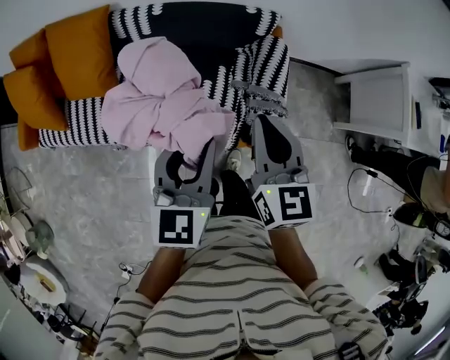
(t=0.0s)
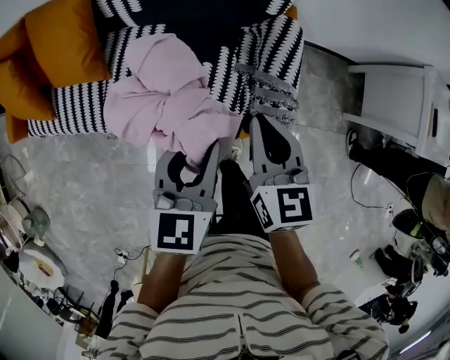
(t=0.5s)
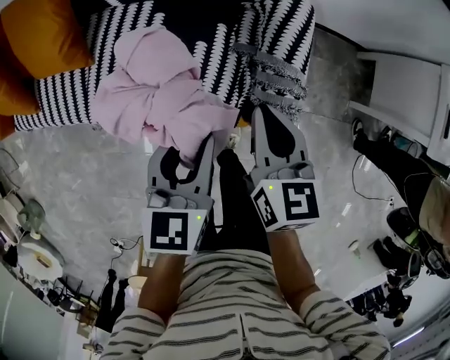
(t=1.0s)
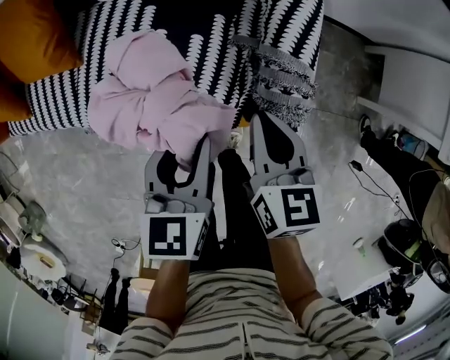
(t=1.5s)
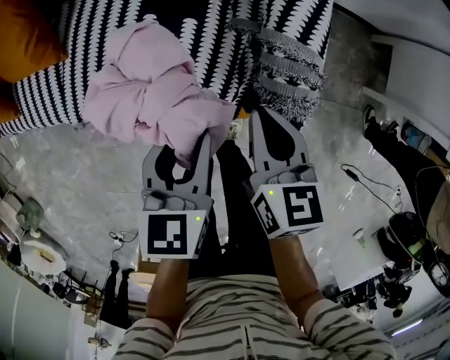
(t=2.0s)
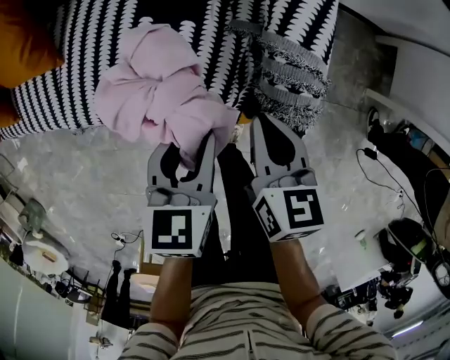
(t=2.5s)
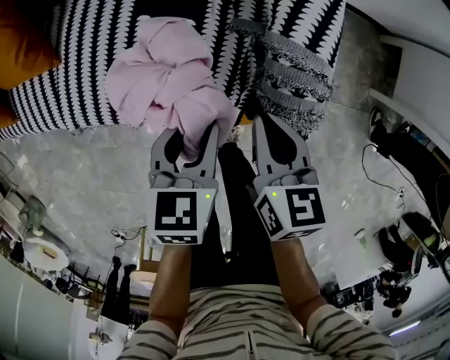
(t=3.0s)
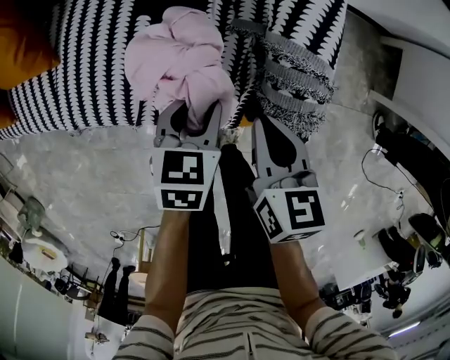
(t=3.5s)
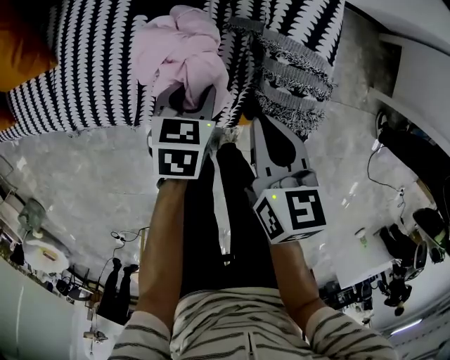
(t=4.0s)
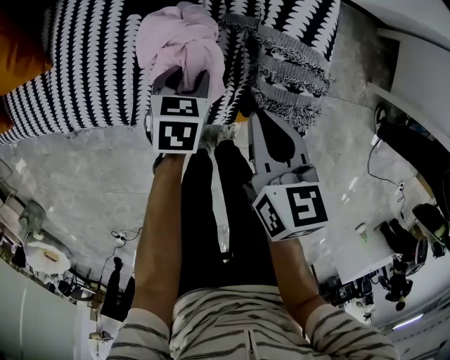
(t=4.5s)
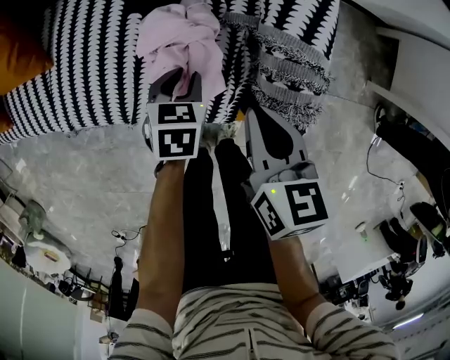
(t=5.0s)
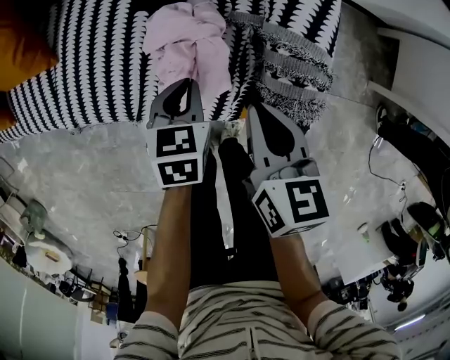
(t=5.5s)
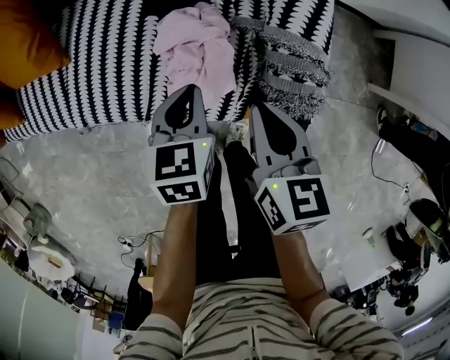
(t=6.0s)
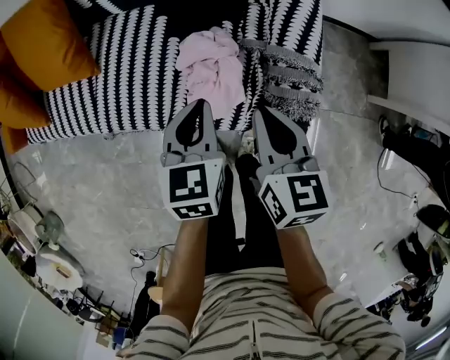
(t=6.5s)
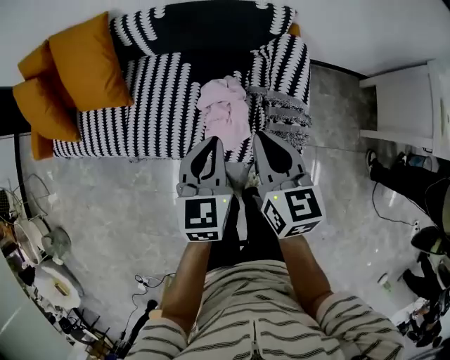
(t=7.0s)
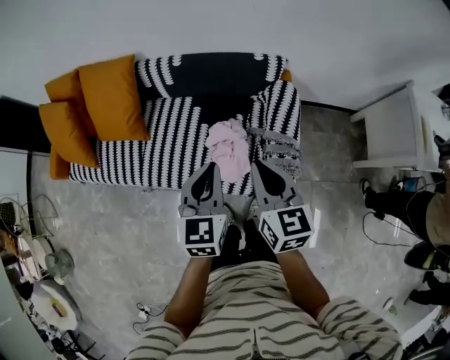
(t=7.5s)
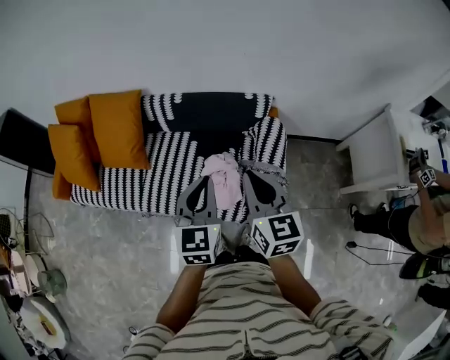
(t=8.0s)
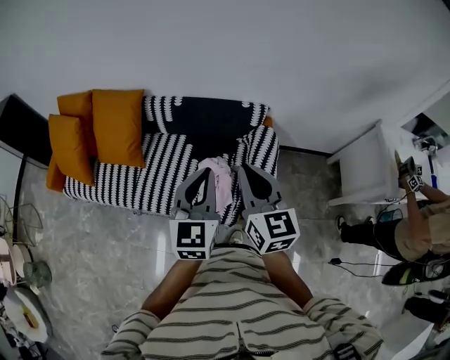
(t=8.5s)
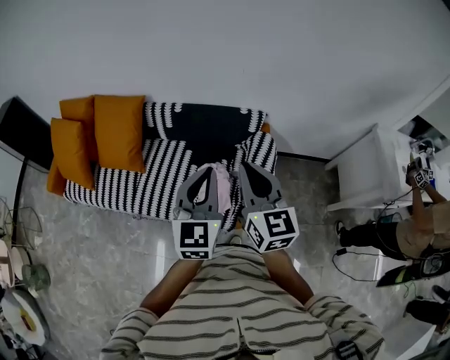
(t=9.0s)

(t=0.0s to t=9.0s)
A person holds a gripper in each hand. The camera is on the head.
t=0.0s - t=2.0s: Both grippers move downward, roughly 30 cm. The right gripper swivels some 20 degrees. Meanwhile the left gripper rotates some 20 degrees.
t=2.0s - t=4.5s: The right gripper travels downward by approximately 5 cm, while the left gripper shifts approximately 20 cm downward and forward, and changes its angle by roughly 20 degrees.
t=4.5s - t=7.0s: Both grippers move upward, approximately 30 cm. The right gripper changes its angle by some 20 degrees. Meanwhile the left gripper tips its fingers upward by about 30 degrees, and closes its fingers.
t=7.0s - t=9.0s: Both grippers travel together upward, about 25 cm. The left gripper rotates roughly 20 degrees. Meanwhile the right gripper turns by about 20 degrees.

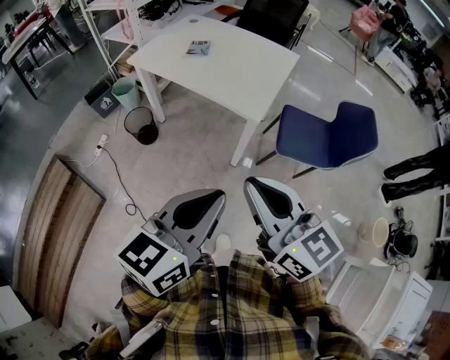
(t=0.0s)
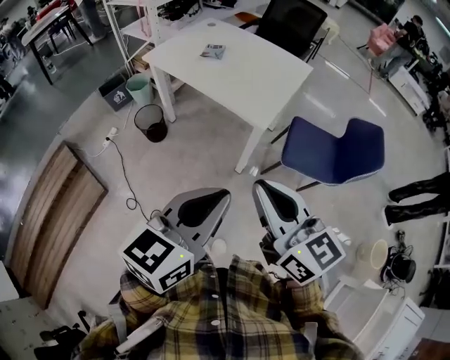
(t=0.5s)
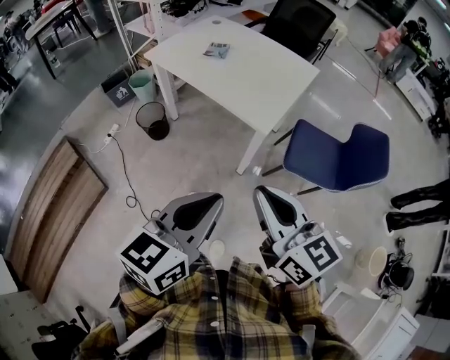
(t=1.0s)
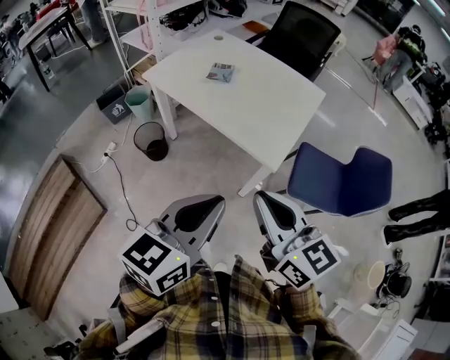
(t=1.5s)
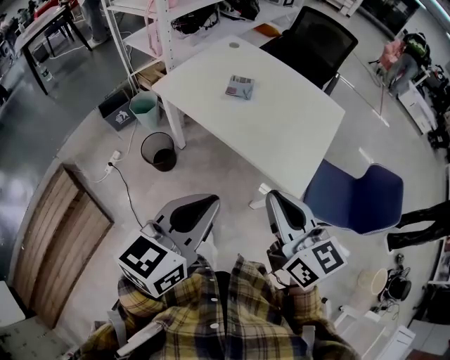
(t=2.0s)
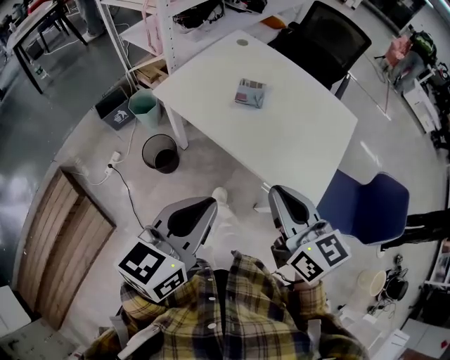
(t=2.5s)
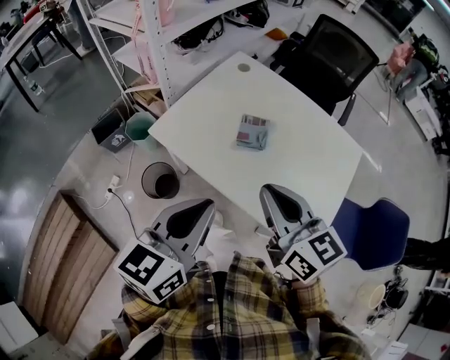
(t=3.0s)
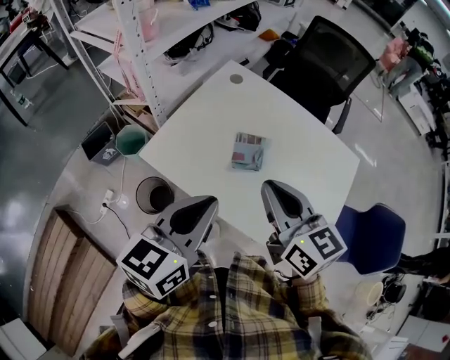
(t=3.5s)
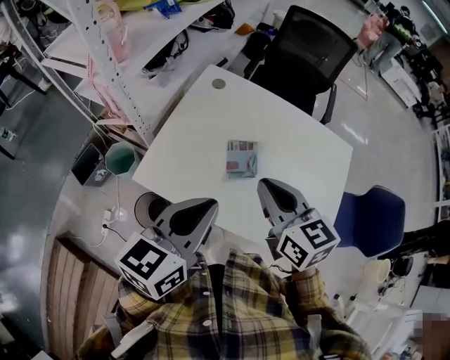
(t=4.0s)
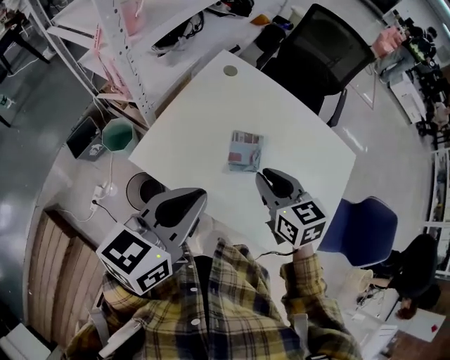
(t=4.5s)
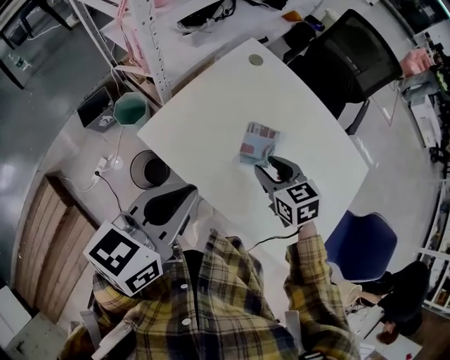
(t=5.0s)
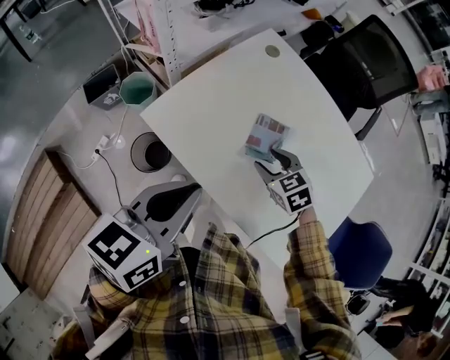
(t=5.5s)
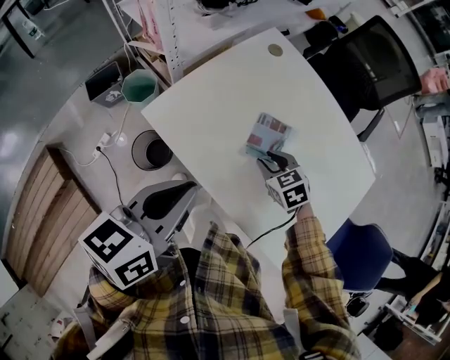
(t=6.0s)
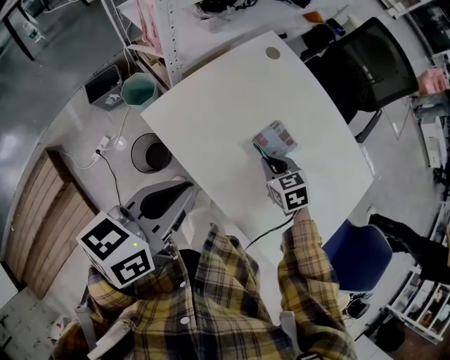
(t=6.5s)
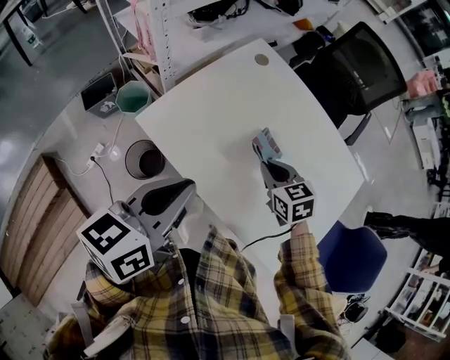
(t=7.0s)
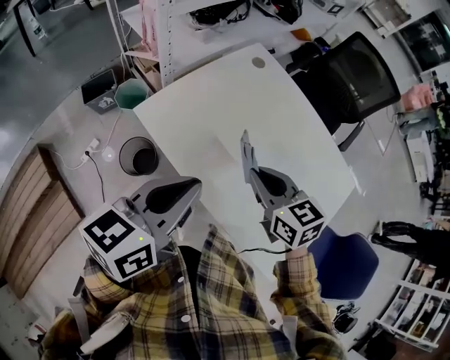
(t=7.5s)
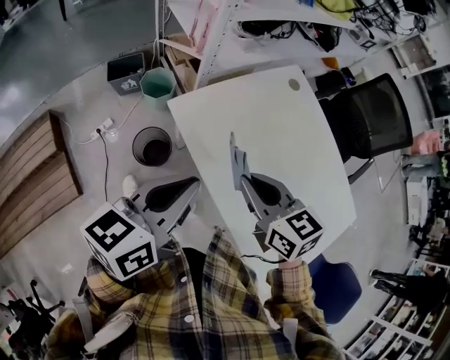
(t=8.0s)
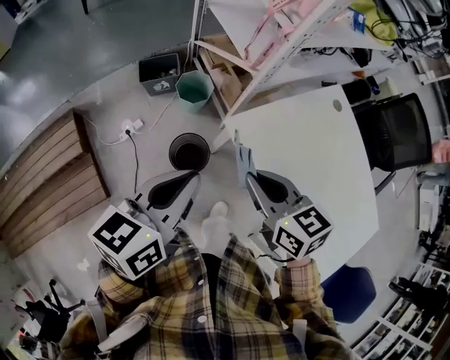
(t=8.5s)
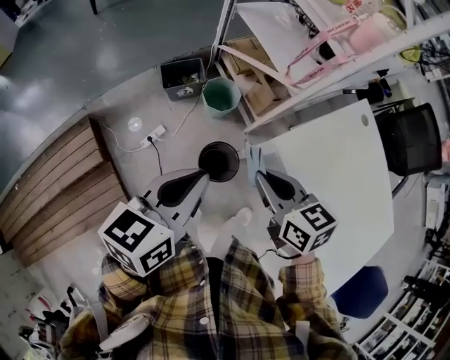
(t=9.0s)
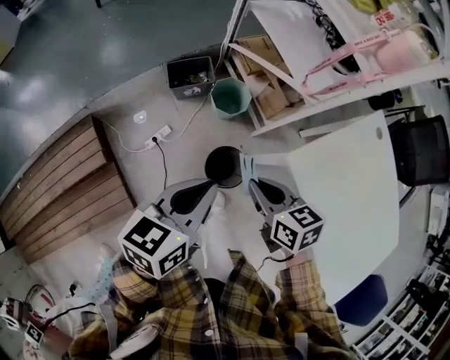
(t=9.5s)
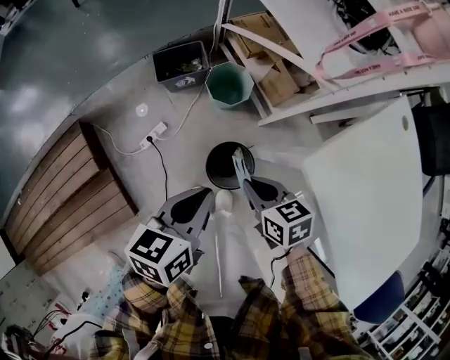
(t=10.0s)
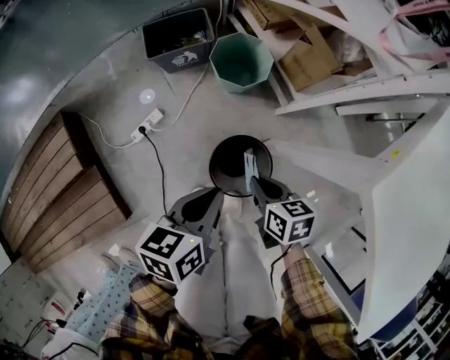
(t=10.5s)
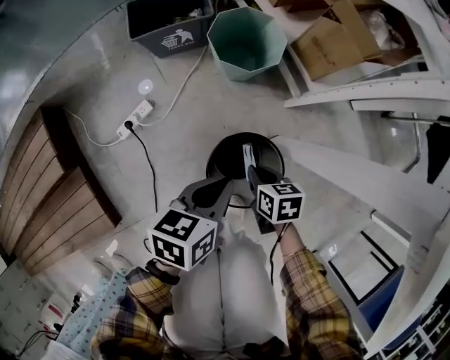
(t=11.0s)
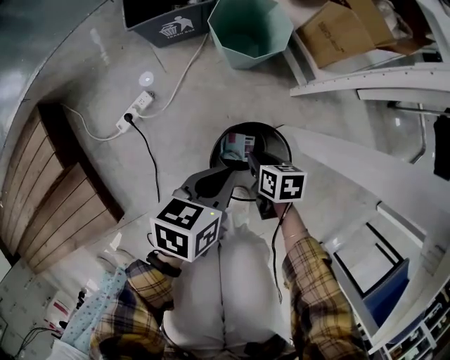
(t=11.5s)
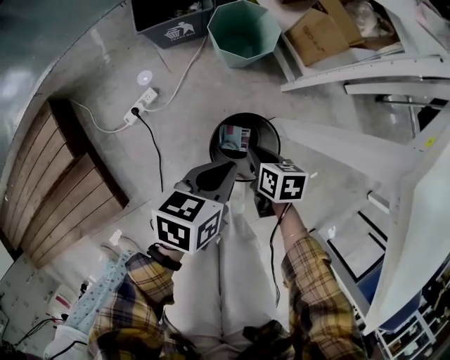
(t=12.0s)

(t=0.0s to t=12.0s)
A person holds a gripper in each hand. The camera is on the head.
t=0.0s - t=2.0s: The left gripper heads forward and to the left, covering some 30 cm, while the right gripper travels forward by about 25 cm.
t=2.0s - t=4.0s: The two grippers travel together, forward, some 40 cm.
t=4.0s - t=6.0s: The right gripper moves downward, approximately 25 cm, angles its fingers downward, by some 40 degrees, and opens up; the left gripper goes roughly 5 cm downward, and changes its angle by about 20 degrees.
t=6.0s - t=8.0s: The right gripper heads upward and to the left, covering roughly 25 cm, changes its angle by roughly 30 degrees, and closes its fingers. Meanwhile the left gripper moves about 5 cm.
t=8.0s - t=10.0s: The grippers both shift to the left, downward and forward by about 40 cm. The right gripper swivels about 20 degrees.
t=10.0s - t=12.0s: The grippers both shift downward by roughly 35 cm. The right gripper turns by roughly 20 degrees.

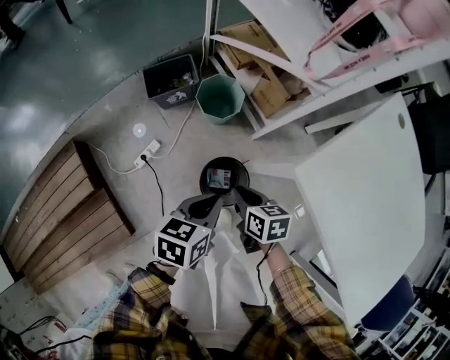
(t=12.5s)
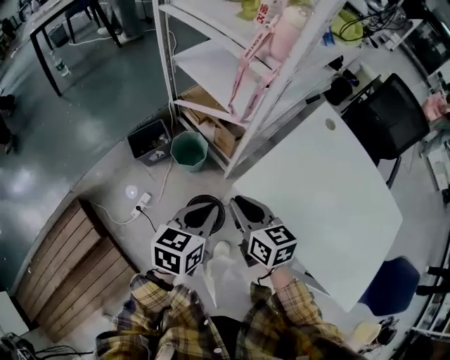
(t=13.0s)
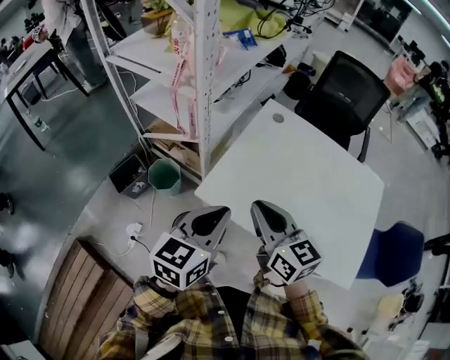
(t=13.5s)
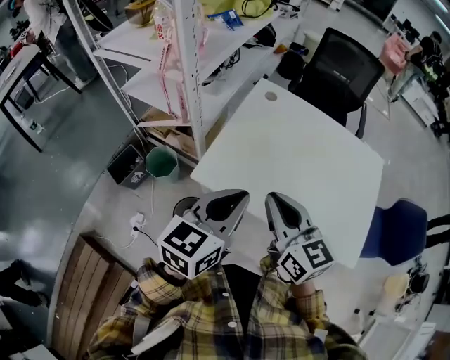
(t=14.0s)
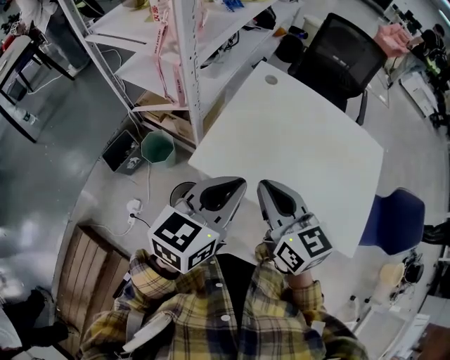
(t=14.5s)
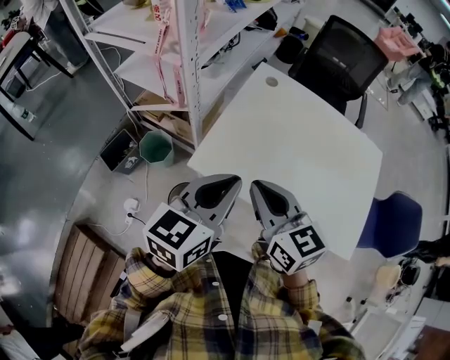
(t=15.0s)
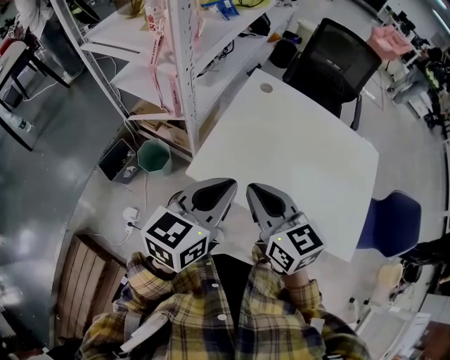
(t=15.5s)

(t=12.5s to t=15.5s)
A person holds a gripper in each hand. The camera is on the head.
t=12.5s - t=14.0s: The two grippers go roughly 40 cm upward. The right gripper points its fingers approximately 40 degrees further upward; the left gripper changes its angle by roughly 50 degrees.
t=14.0s - t=15.5s: The right gripper moves some 5 cm.

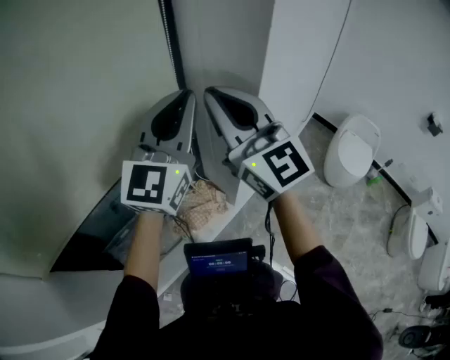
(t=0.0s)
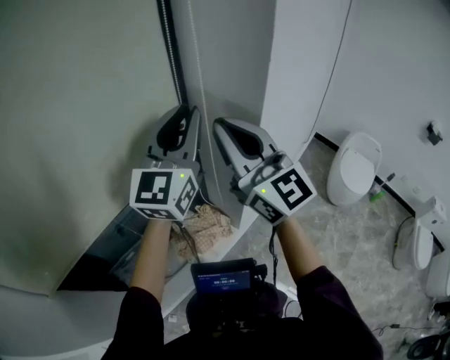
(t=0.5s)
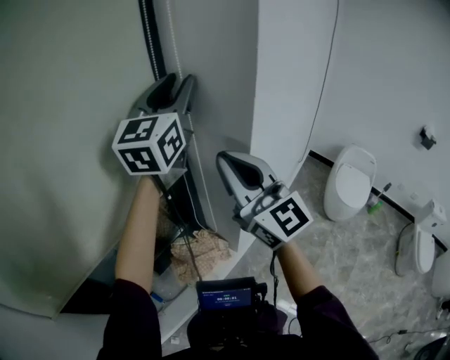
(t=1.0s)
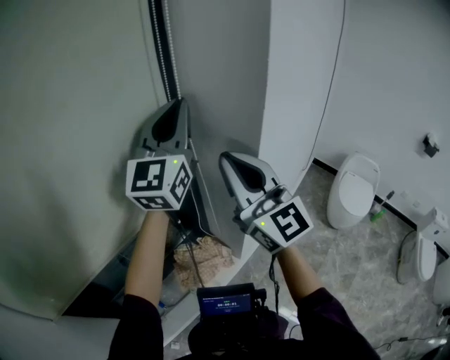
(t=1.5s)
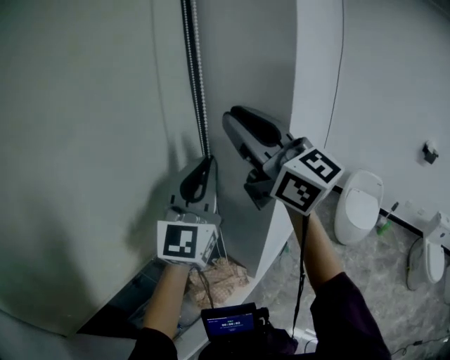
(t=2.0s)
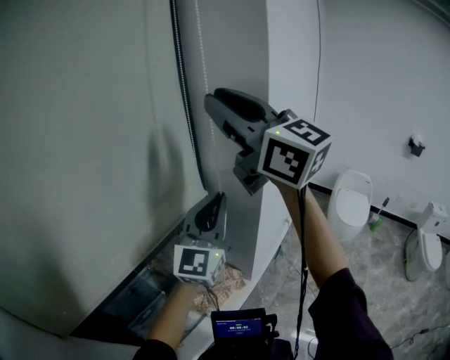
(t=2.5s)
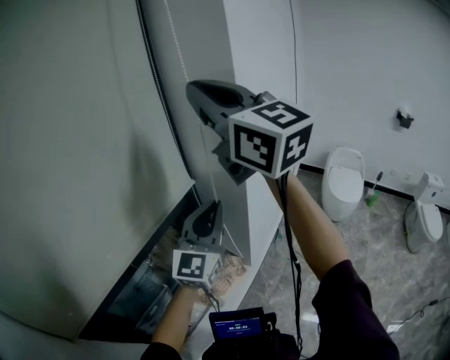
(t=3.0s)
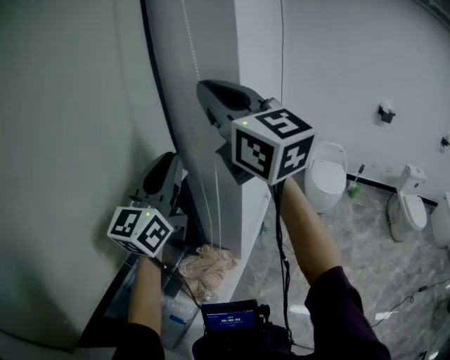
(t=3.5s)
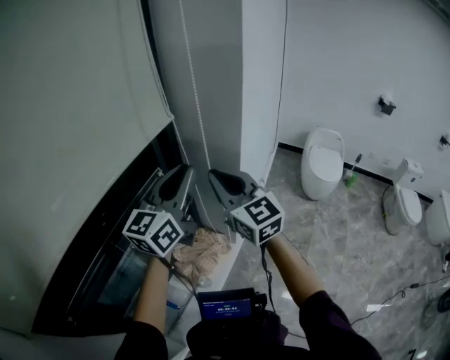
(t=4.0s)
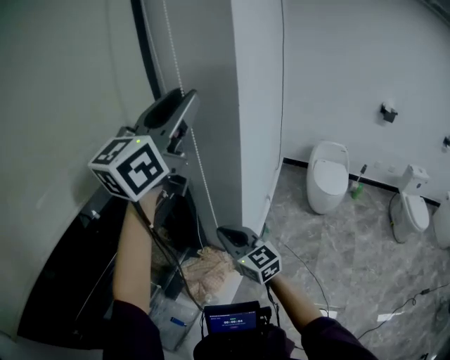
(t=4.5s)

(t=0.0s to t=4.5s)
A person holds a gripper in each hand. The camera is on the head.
t=0.0s - t=2.0s: The left gripper goes approximately 5 cm upward, reaches about 10 cm forward, then returns, and opens, then closes again. Meanwhile the right gripper travels upward by roughly 15 cm.
t=2.0s - t=4.5s: The right gripper shifts about 40 cm downward, and swivels some 30 degrees; the left gripper moves up and down over approximately 20 cm, changing direction 3 times, rotates roughly 40 degrees, and opens its fingers.
